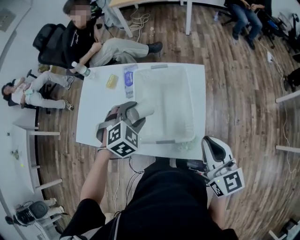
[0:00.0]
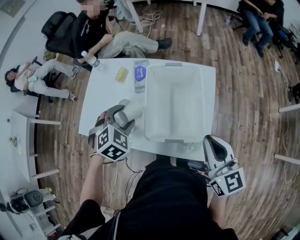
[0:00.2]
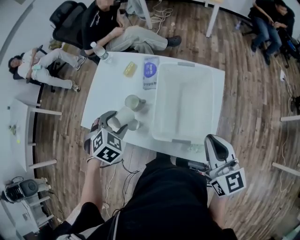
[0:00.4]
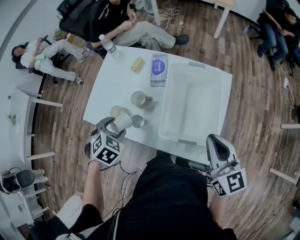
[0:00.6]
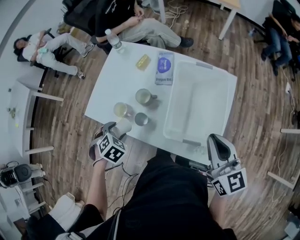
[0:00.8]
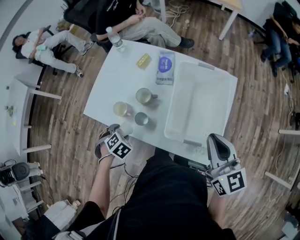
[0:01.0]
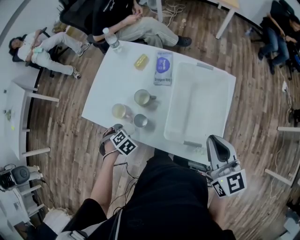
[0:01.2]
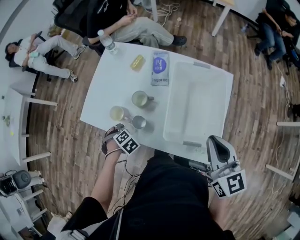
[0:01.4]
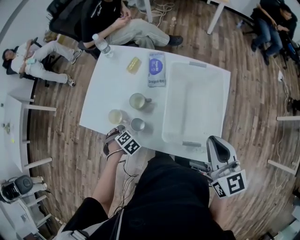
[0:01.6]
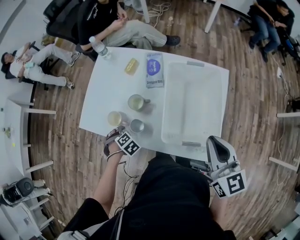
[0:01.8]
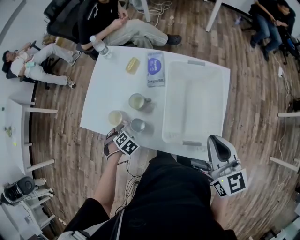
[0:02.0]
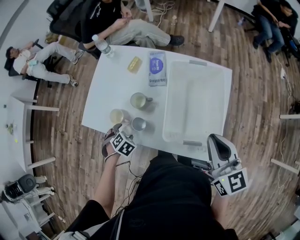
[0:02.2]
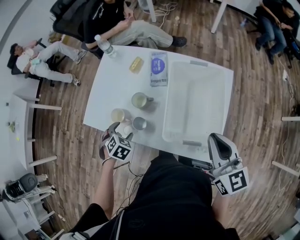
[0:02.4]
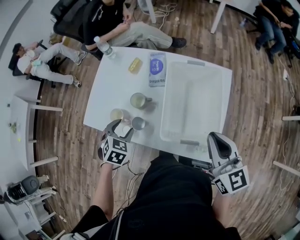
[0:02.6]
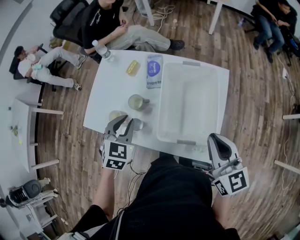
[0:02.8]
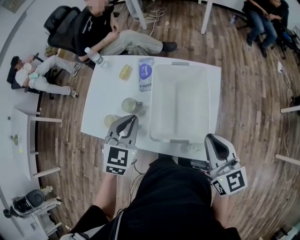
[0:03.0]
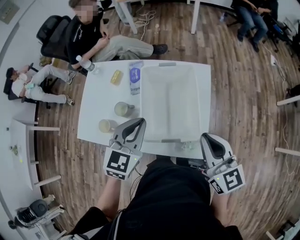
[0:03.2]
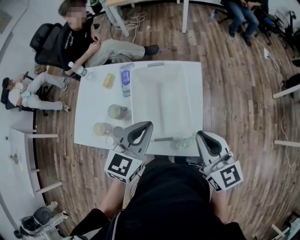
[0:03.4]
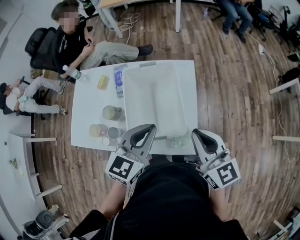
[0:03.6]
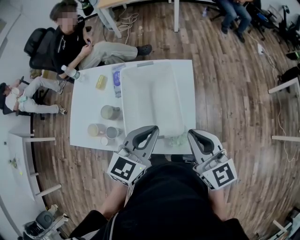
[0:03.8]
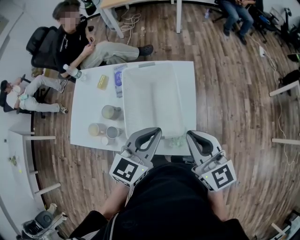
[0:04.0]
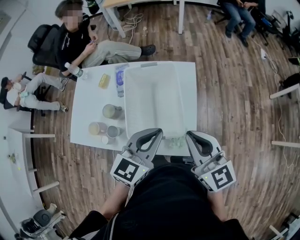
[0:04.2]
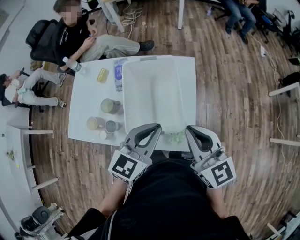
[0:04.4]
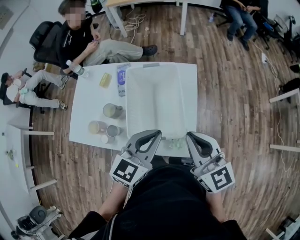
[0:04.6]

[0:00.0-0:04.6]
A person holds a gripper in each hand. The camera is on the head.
0:00.0 to 0:01.6: The left gripper moves approximately 35 cm, and turns by approximately 40 degrees; the right gripper moves some 10 cm.
0:01.6 to 0:03.0: The left gripper is displaced upward by some 30 cm, points its fingers some 50 degrees further upward, and closes its fingers; the right gripper ends up roughly 5 cm from where it was.
0:03.0 to 0:04.6: The left gripper is displaced to the right by about 20 cm, and rotates approximately 30 degrees.

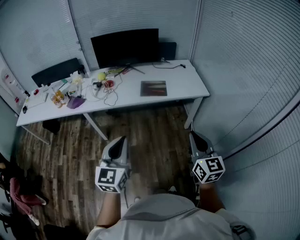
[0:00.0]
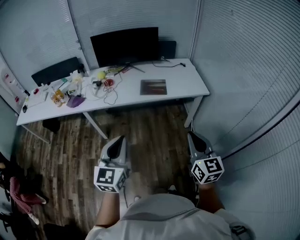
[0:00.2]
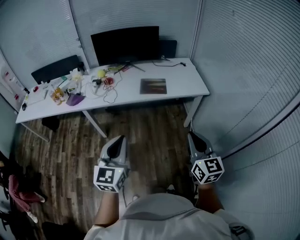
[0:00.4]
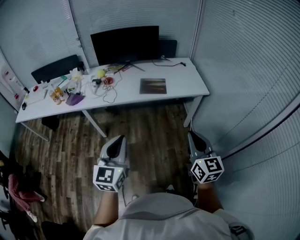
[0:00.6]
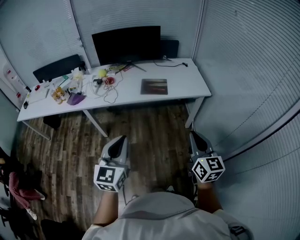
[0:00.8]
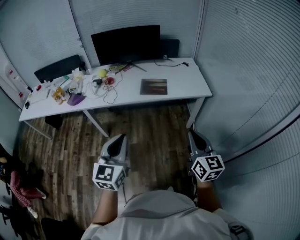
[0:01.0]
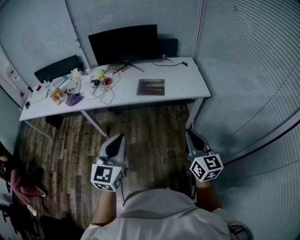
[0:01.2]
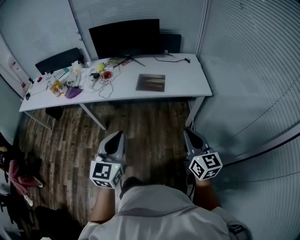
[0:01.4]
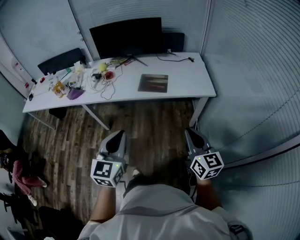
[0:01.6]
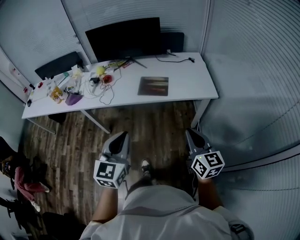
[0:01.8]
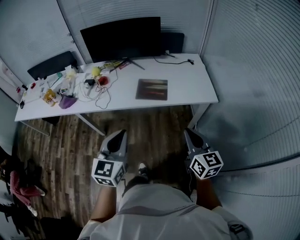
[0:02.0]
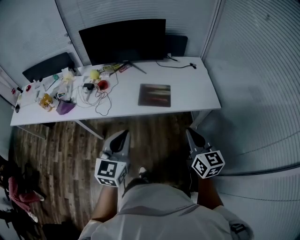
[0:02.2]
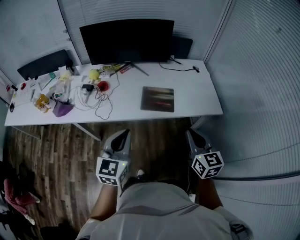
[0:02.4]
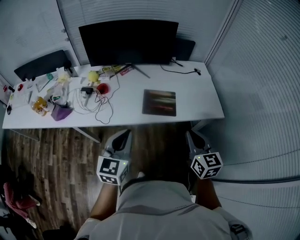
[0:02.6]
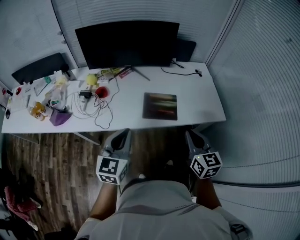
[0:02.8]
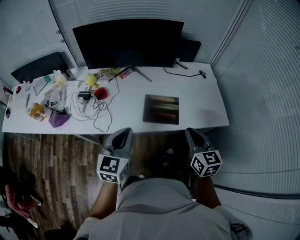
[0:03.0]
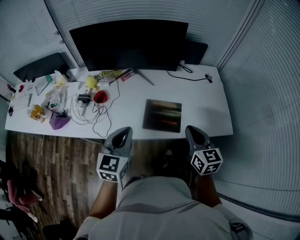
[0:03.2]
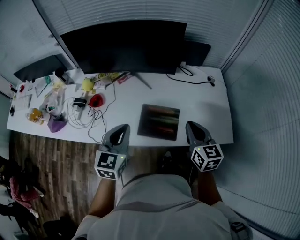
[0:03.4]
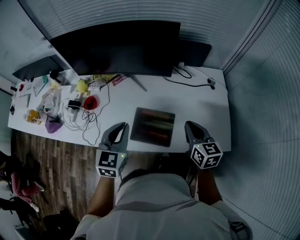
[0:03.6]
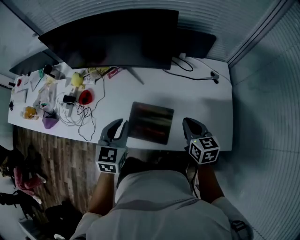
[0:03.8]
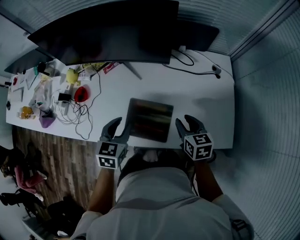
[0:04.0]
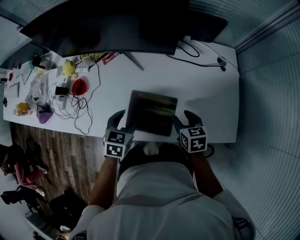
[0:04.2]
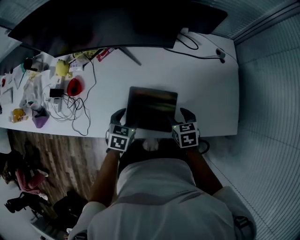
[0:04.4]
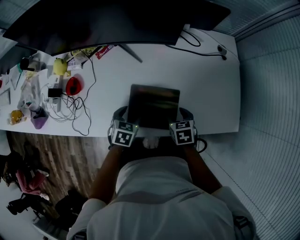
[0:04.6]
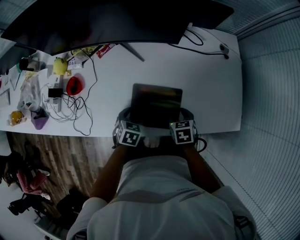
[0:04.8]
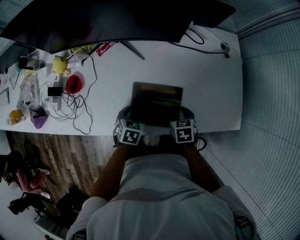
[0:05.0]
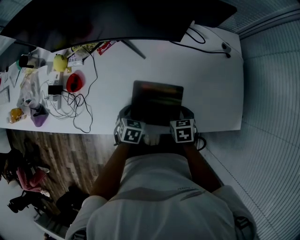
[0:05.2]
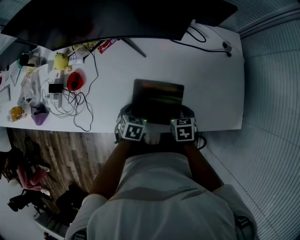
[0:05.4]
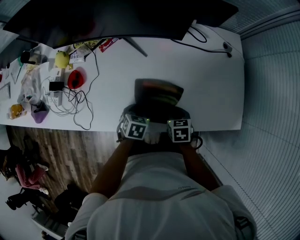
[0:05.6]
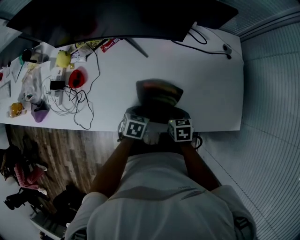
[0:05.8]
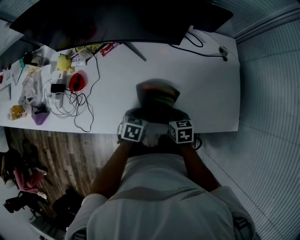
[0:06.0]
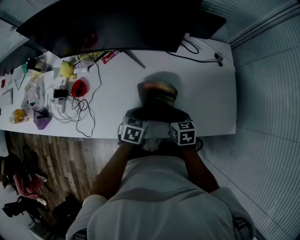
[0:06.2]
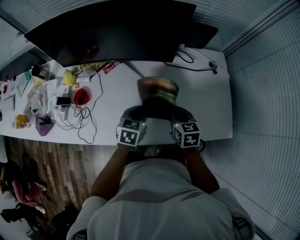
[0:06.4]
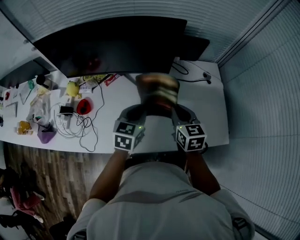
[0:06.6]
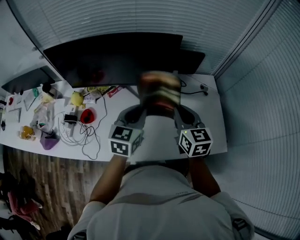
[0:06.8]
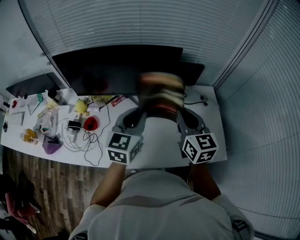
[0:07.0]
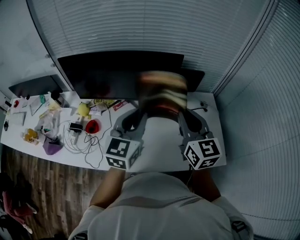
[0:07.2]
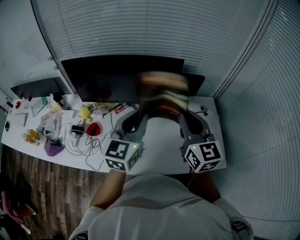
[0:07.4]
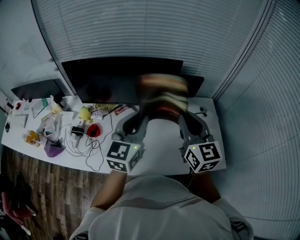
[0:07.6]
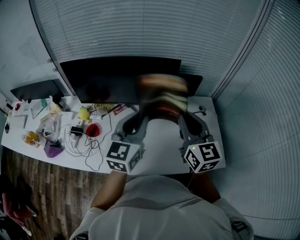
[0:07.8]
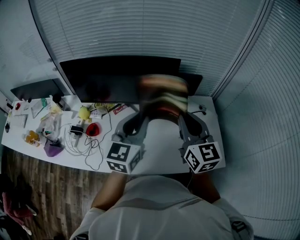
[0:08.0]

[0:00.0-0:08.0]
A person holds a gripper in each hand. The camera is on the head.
0:00.0 to 0:01.6: The right gripper goes about 15 cm forward, to the right and downward. Meanwhile the left gripper shifts some 15 cm to the right and forward.
0:01.6 to 0:03.2: The two grippers travel together, forward, approximately 50 cm.
0:03.2 to 0:04.8: Both grippers travel together downward and forward, about 35 cm. The left gripper points its fingers some 40 degrees further downward, and opens up; the right gripper tips its fingers downward by some 40 degrees, and opens its fingers.
0:04.8 to 0:06.4: The left gripper heads upward and forward, covering about 15 cm, and closes, while the right gripper moves upward, about 15 cm, rotates approximately 20 degrees, and closes.
0:06.4 to 0:08.0: Both grippers travel together upward, roughly 30 cm. The left gripper tilts its fingers some 40 degrees upward; the right gripper tilts its fingers about 40 degrees upward.

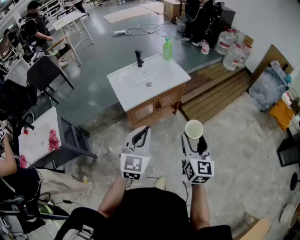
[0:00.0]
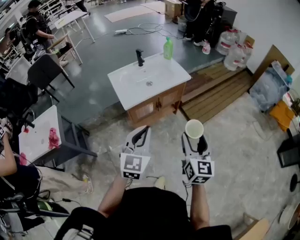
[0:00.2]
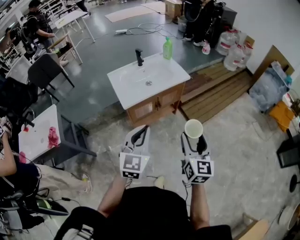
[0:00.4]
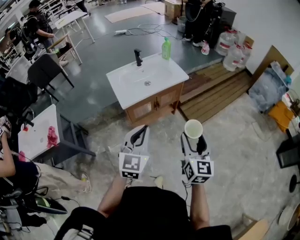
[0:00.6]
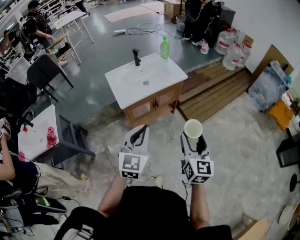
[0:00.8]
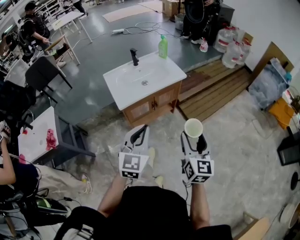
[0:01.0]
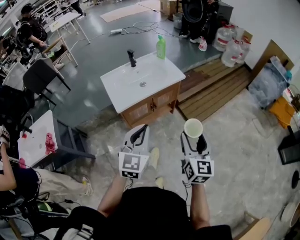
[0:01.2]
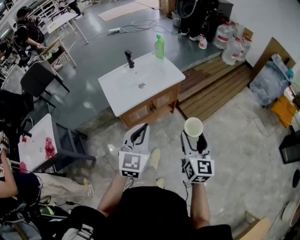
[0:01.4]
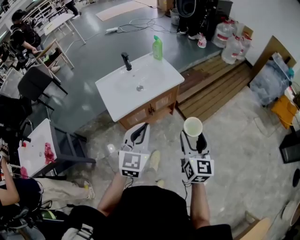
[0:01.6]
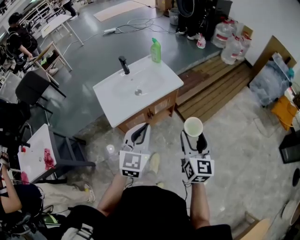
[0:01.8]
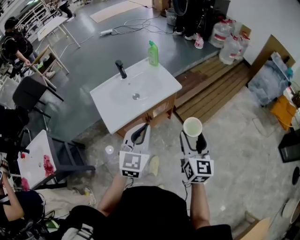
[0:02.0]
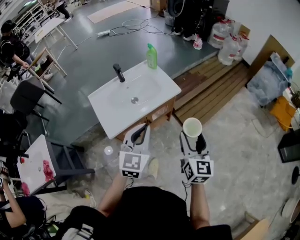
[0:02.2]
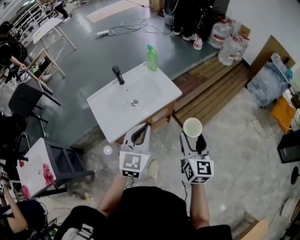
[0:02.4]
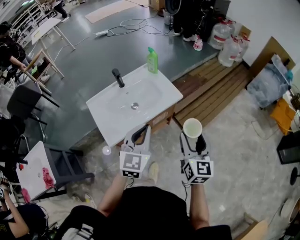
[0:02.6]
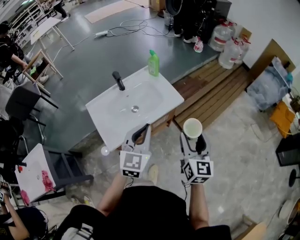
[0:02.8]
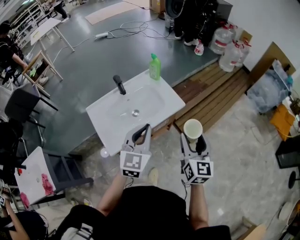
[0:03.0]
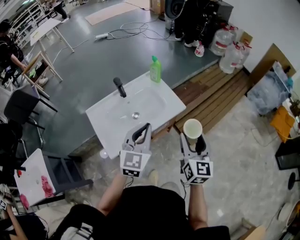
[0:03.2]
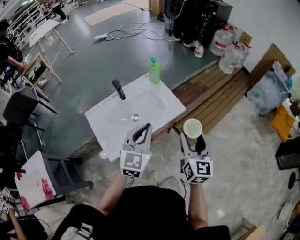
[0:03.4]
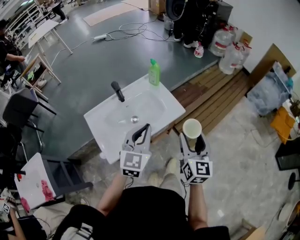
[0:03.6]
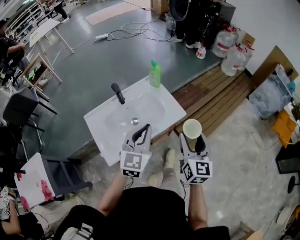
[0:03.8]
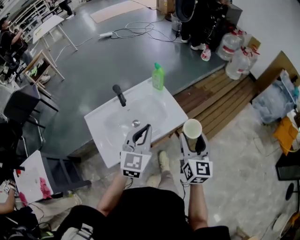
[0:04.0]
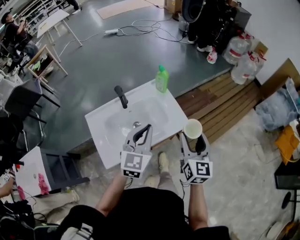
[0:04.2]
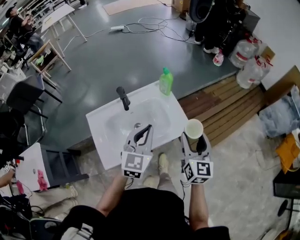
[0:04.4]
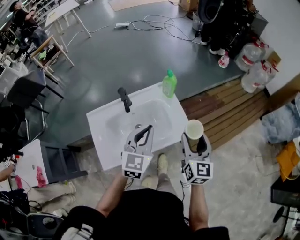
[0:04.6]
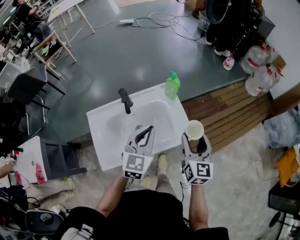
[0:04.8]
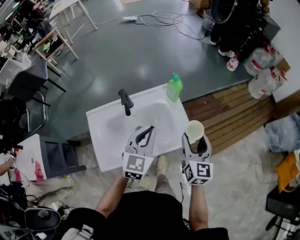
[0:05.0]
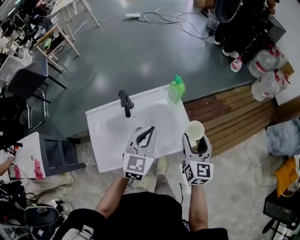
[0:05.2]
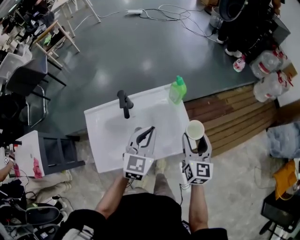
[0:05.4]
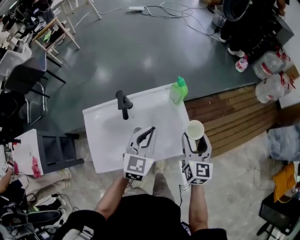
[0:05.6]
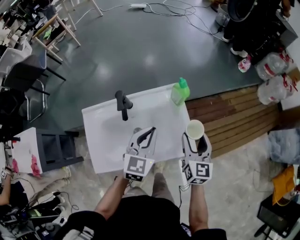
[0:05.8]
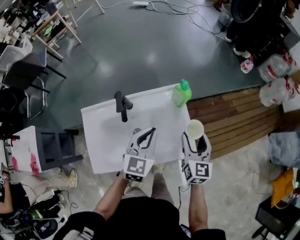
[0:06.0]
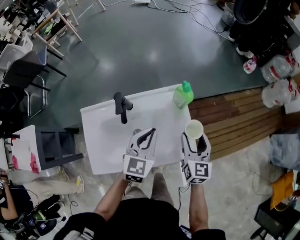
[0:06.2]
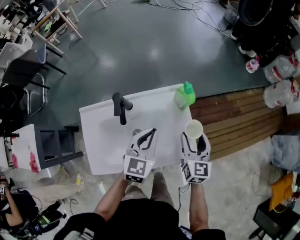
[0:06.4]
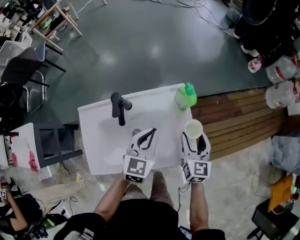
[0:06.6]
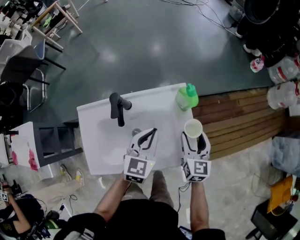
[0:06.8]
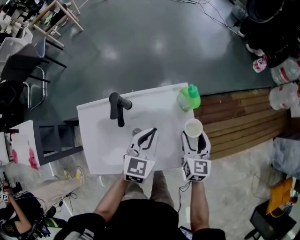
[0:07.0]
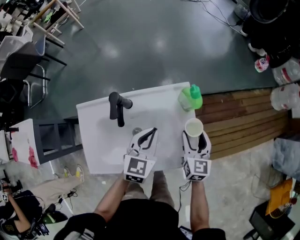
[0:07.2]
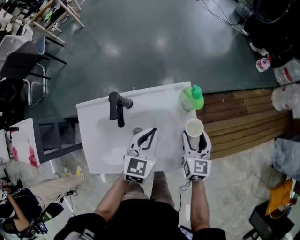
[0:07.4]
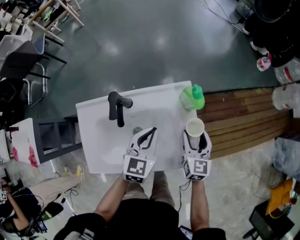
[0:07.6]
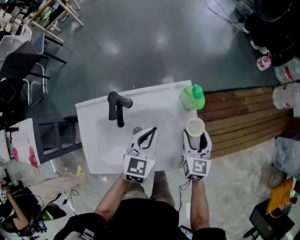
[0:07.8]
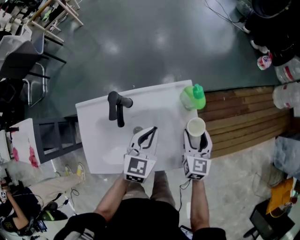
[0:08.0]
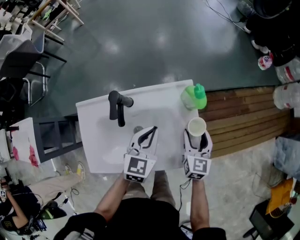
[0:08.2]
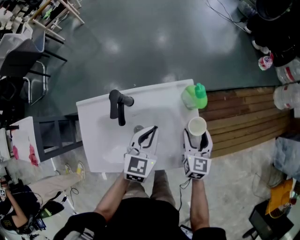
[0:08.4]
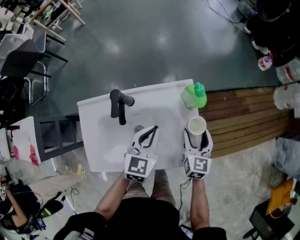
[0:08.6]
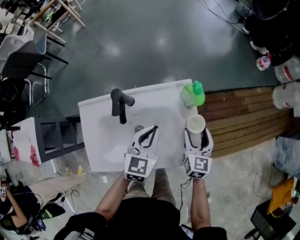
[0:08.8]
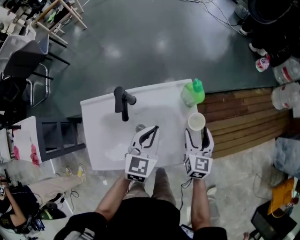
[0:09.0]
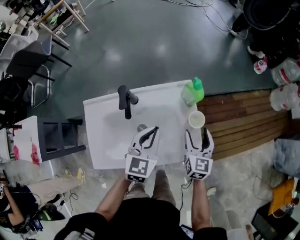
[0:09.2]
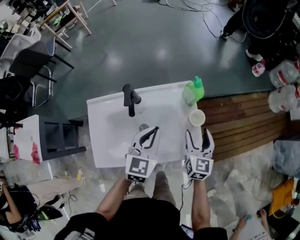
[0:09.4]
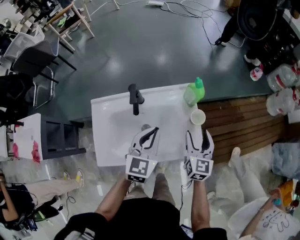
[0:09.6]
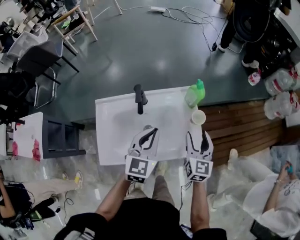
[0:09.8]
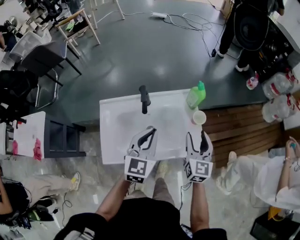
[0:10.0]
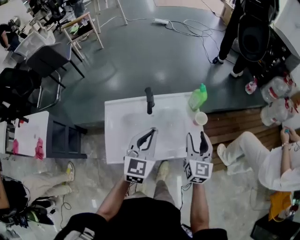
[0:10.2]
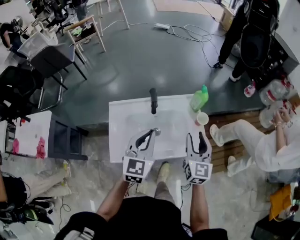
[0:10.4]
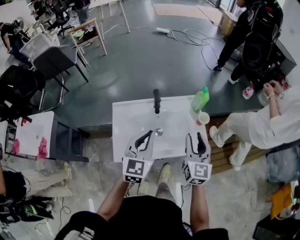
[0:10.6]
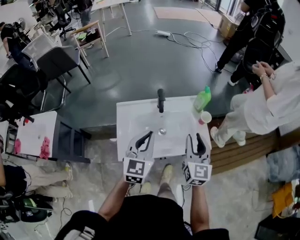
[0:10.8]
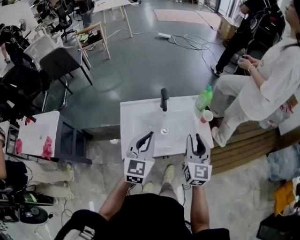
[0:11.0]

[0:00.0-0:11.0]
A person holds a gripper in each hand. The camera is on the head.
0:00.0 to 0:01.6: The two grippers go roughly 15 cm forward and to the right.
0:01.6 to 0:03.2: The two grippers go about 25 cm forward.
0:03.2 to 0:04.8: Both grippers move forward, about 20 cm.
0:04.8 to 0:06.2: Both grippers move forward and downward, about 15 cm.
0:06.2 to 0:07.8: Both grippers travel together downward, some 10 cm.
0:07.8 to 0:09.4: The left gripper travels upward by roughly 5 cm. The right gripper changes place by about 5 cm.
0:09.4 to 0:11.0: The left gripper shifts about 30 cm backward, to the left and upward. The right gripper is displaced upward, backward and to the left by some 30 cm, and closes.
